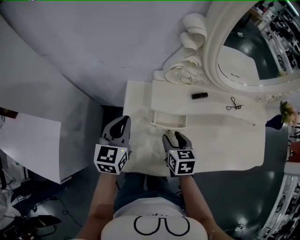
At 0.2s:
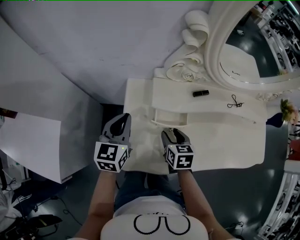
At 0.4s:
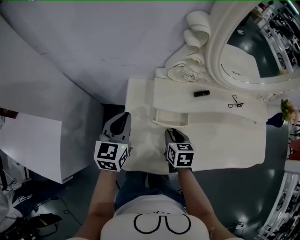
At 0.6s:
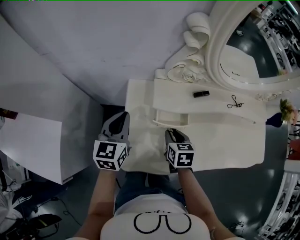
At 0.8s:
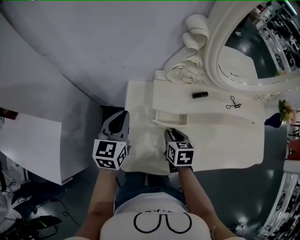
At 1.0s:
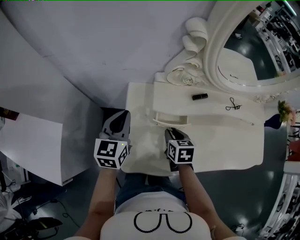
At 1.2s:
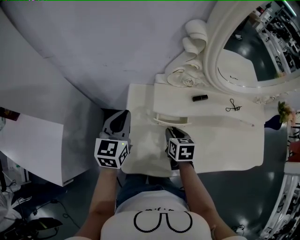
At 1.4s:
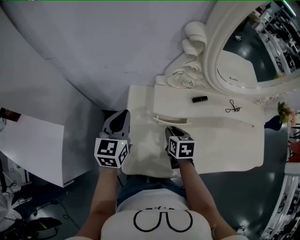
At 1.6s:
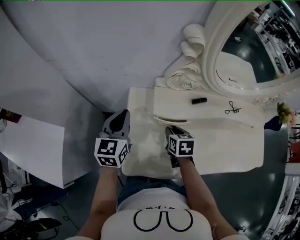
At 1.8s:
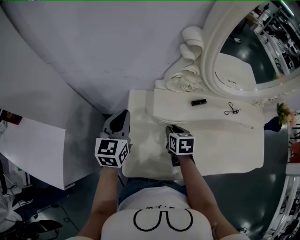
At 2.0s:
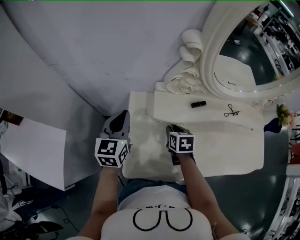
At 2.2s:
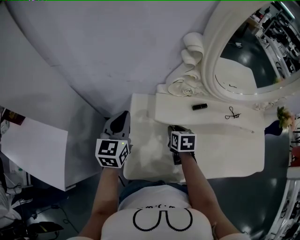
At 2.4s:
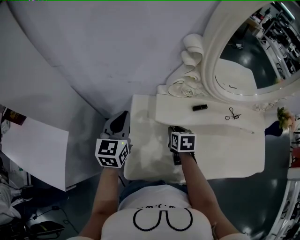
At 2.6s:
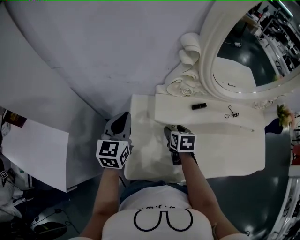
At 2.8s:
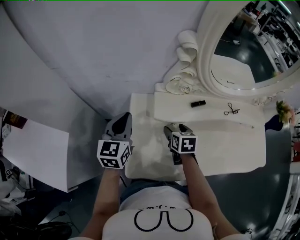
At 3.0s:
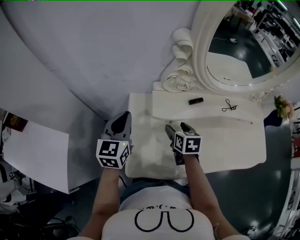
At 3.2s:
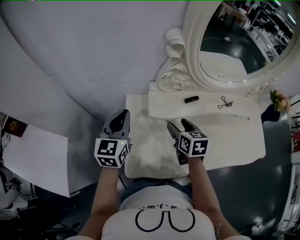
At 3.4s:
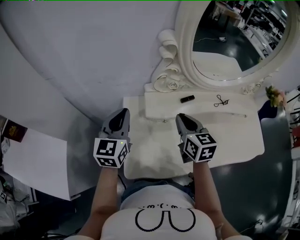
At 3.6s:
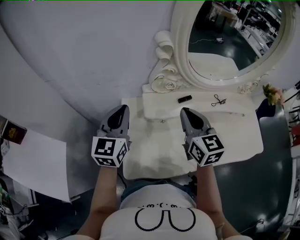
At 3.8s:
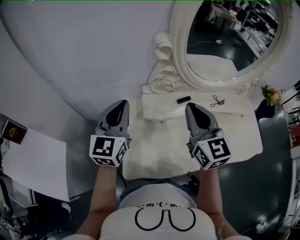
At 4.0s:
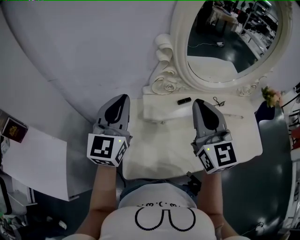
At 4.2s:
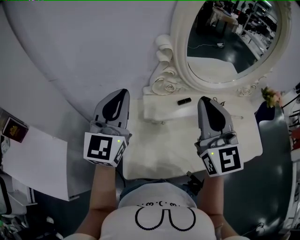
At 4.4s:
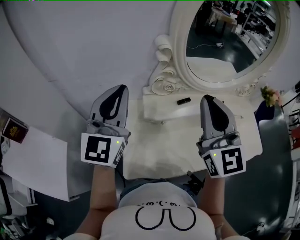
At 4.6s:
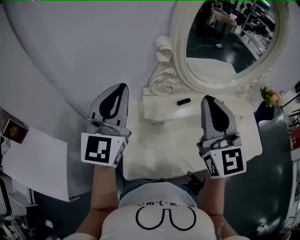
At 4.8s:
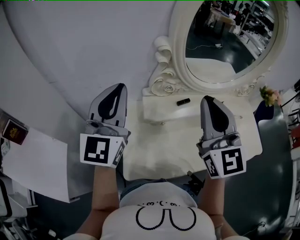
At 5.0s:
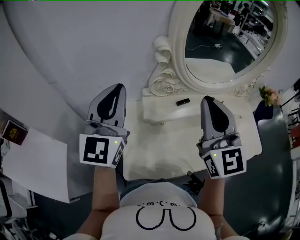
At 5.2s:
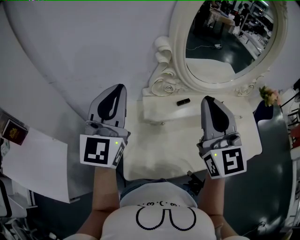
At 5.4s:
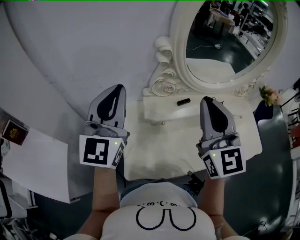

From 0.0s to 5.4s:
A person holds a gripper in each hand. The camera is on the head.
From 0.0s to 1.4s: The right gripper closes its fingers.
From 1.4s to 2.8s: The right gripper opens up.
From 2.8s to 4.0s: The right gripper moves upward, some 35 cm, tips its fingers upward by roughly 50 degrees, and closes. Meanwhile the left gripper heads upward, covering some 15 cm, and changes its angle by about 20 degrees.
From 4.0s to 5.4s: The left gripper shifts about 10 cm upward; the right gripper is displaced upward by about 5 cm.

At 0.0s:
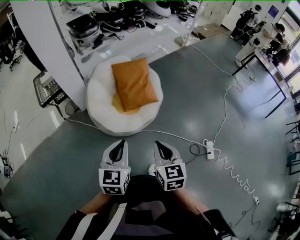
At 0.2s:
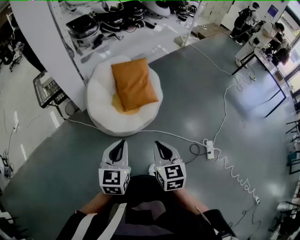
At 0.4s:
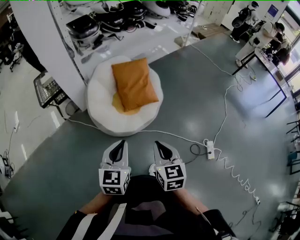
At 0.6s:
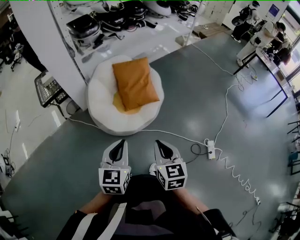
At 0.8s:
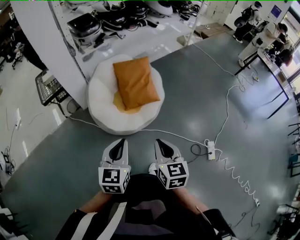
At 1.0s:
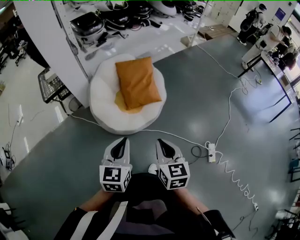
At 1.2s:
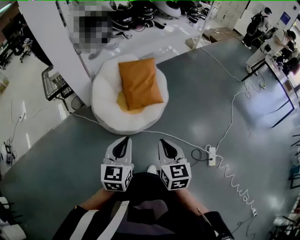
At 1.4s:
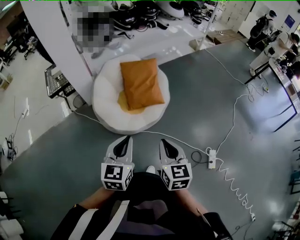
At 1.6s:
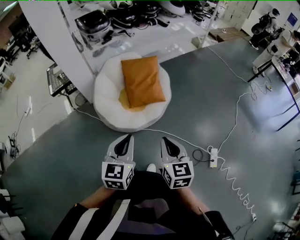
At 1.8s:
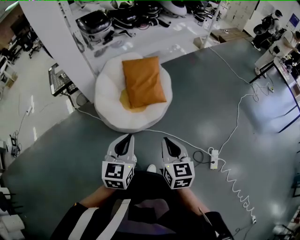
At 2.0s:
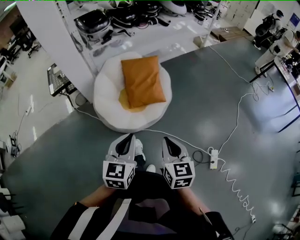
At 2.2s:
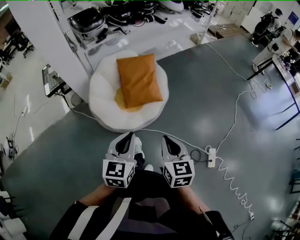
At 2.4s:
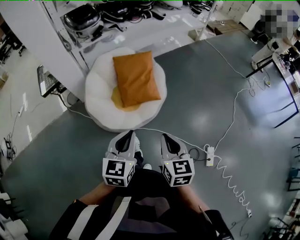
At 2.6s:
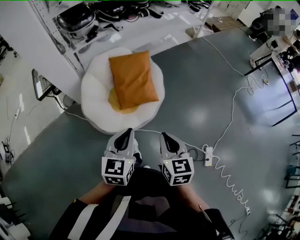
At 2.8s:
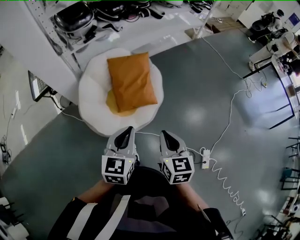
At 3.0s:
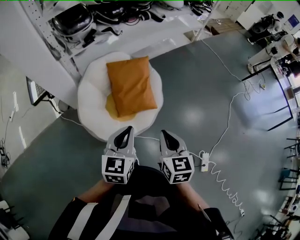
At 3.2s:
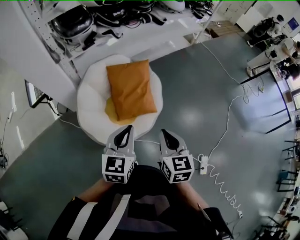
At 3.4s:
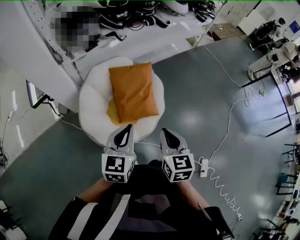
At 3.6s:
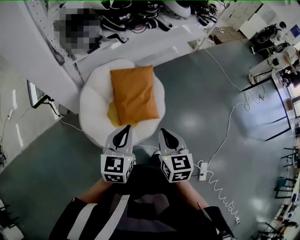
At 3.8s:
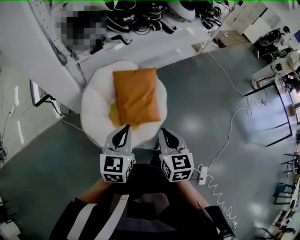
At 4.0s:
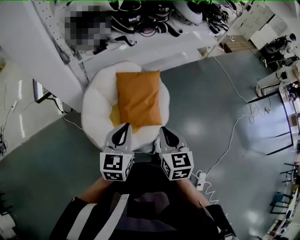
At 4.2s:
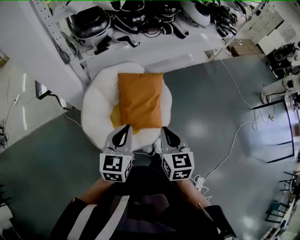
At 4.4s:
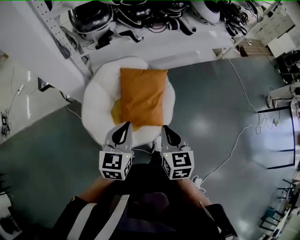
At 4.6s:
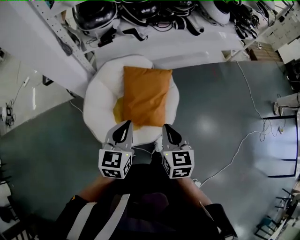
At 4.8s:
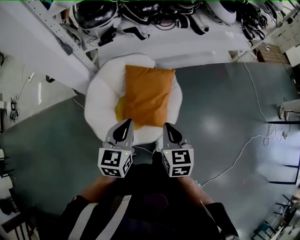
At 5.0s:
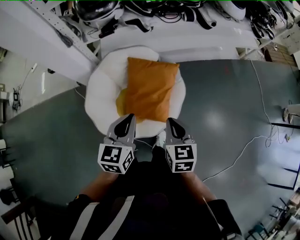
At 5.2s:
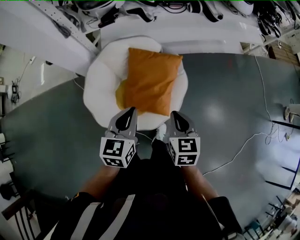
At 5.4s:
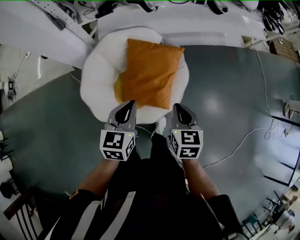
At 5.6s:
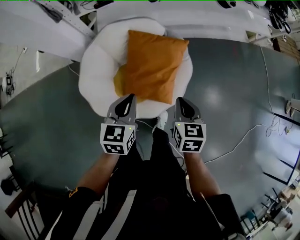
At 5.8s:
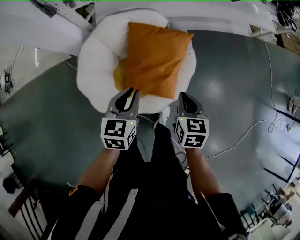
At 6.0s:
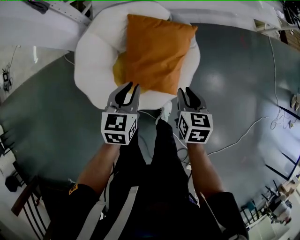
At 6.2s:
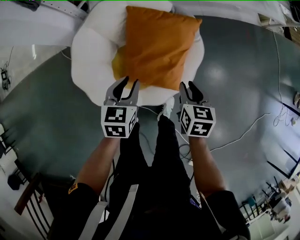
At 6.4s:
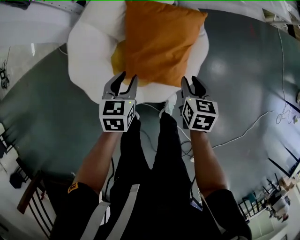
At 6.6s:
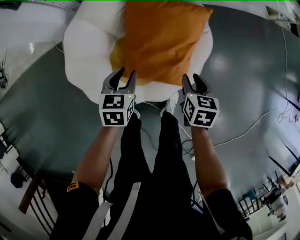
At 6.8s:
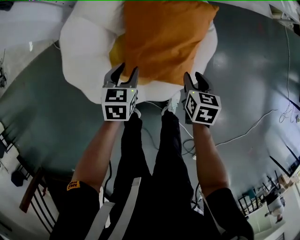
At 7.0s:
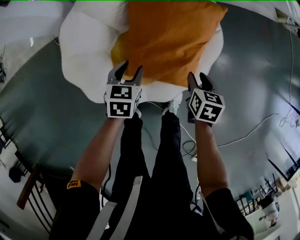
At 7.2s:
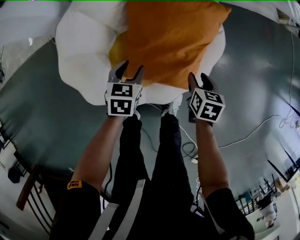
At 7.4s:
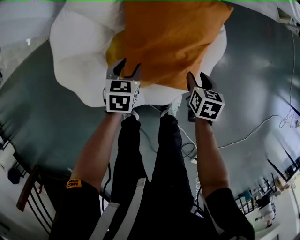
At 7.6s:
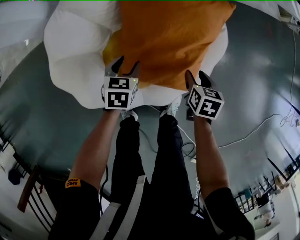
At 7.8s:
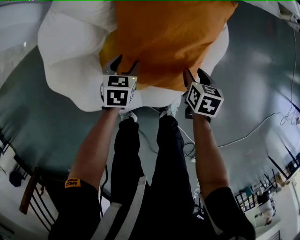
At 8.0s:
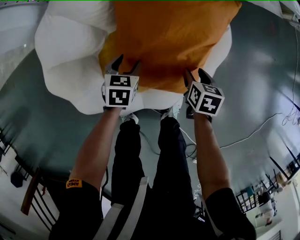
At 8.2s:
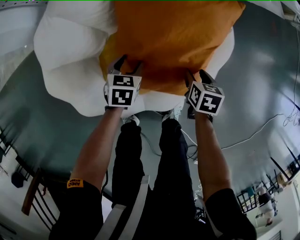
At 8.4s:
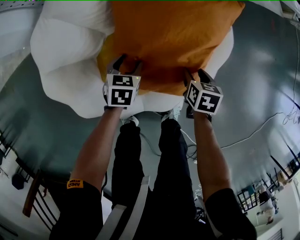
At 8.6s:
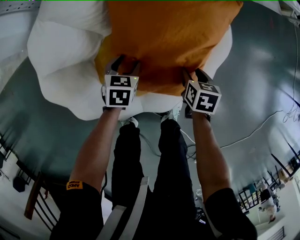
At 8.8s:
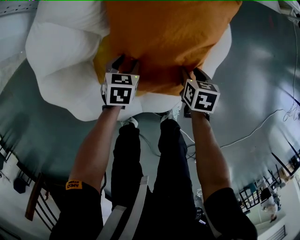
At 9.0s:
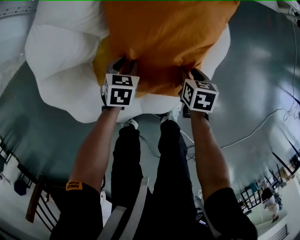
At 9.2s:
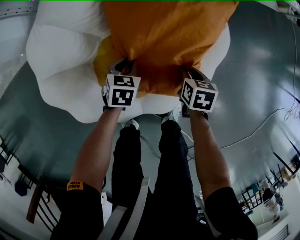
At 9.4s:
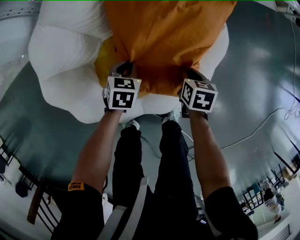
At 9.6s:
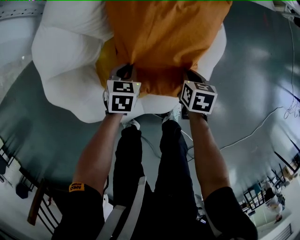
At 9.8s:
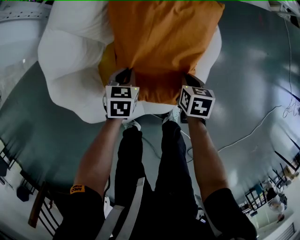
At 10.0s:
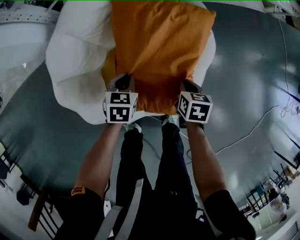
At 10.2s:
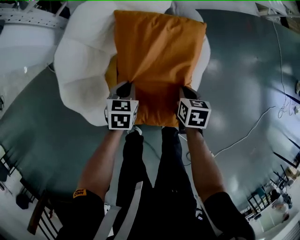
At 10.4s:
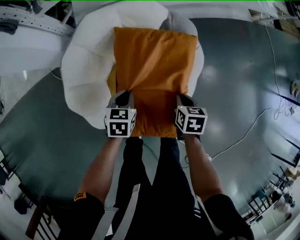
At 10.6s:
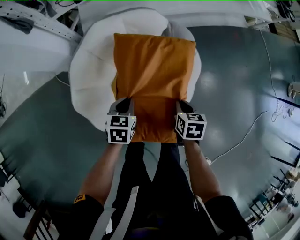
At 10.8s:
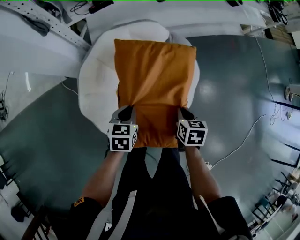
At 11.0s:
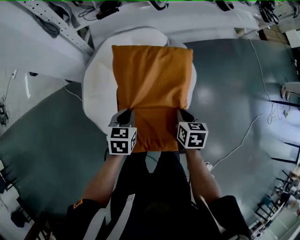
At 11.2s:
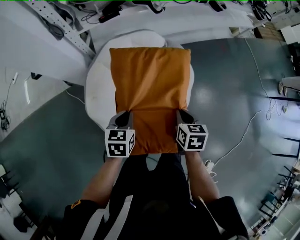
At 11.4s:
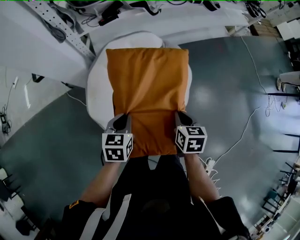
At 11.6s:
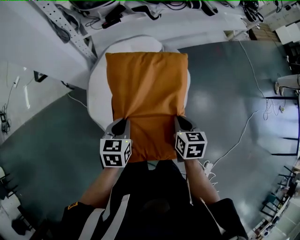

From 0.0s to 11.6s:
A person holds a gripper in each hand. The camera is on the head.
From 0.0s to 1.4s: The two grippers go approximately 10 cm to the right.
From 1.4s to 2.8s: Both grippers travel together forward, roughly 20 cm.
From 2.8s to 4.4s: The grippers both shift forward by about 25 cm.
From 4.4s to 5.8s: The grippers both shift downward and forward by some 20 cm.
From 5.8s to 7.2s: The grippers both shift downward by roughly 30 cm. The right gripper opens up; the left gripper opens up.
From 7.2s to 8.8s: The two grippers go roughly 15 cm downward.
From 8.8s to 10.2s: The grippers both shift upward by approximately 15 cm. The right gripper closes up, while the left gripper closes up.
From 10.2s to 11.6s: Both grippers travel together upward and backward, about 35 cm.

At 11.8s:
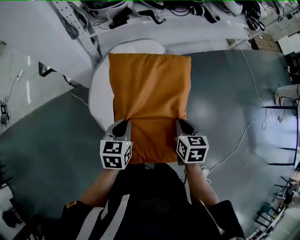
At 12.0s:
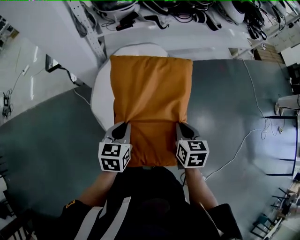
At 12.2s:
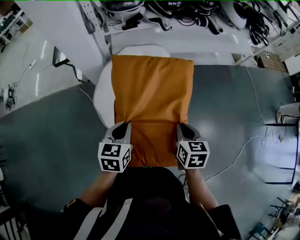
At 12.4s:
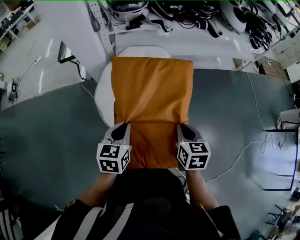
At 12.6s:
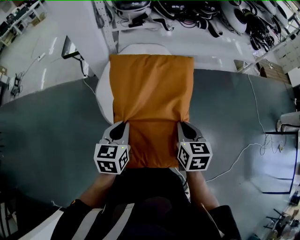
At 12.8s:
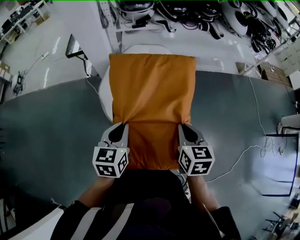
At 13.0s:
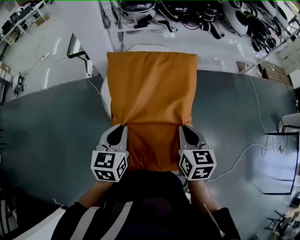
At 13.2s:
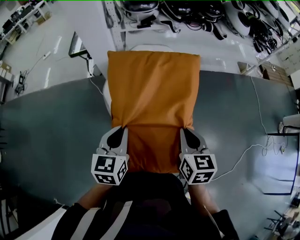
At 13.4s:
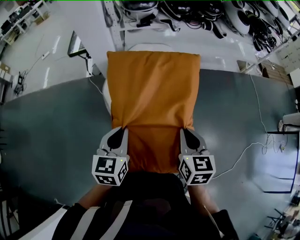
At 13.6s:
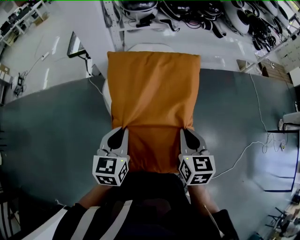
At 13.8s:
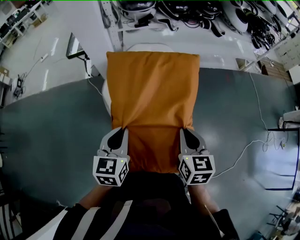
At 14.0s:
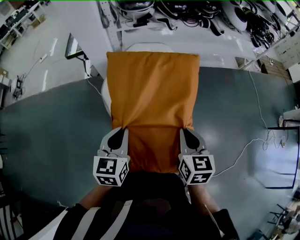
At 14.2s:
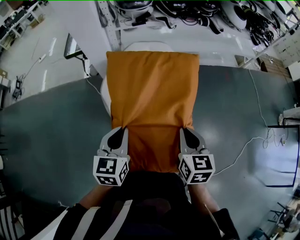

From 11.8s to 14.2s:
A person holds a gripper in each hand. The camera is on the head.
From 11.8s to 13.0s: The two grippers go about 25 cm backward and upward.
From 13.0s to 14.2s: The grippers make only small movements.

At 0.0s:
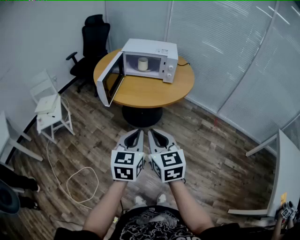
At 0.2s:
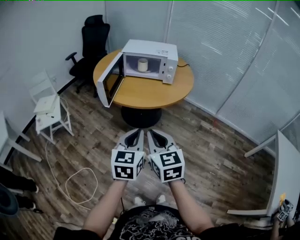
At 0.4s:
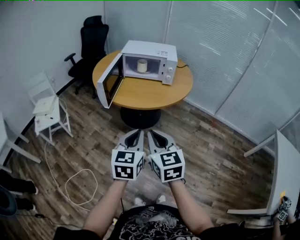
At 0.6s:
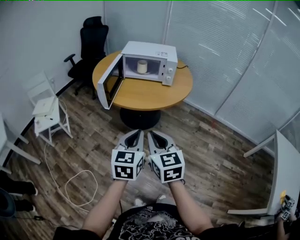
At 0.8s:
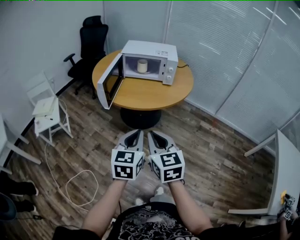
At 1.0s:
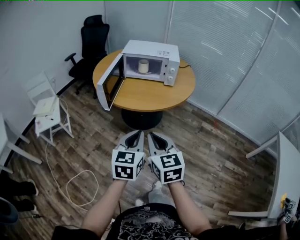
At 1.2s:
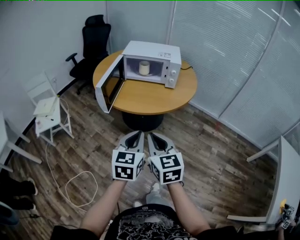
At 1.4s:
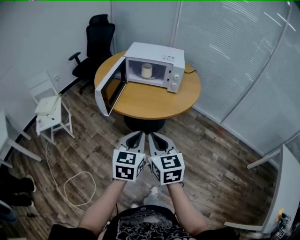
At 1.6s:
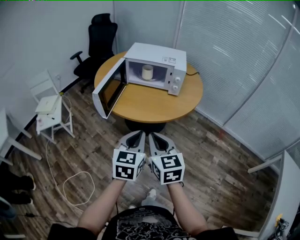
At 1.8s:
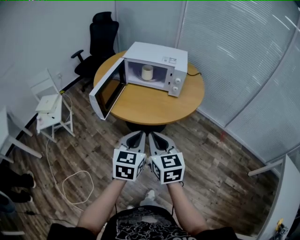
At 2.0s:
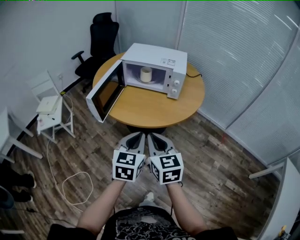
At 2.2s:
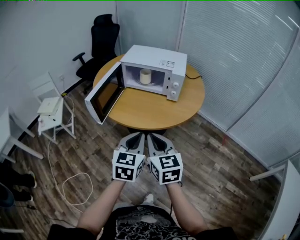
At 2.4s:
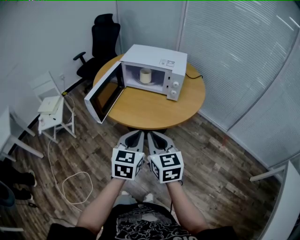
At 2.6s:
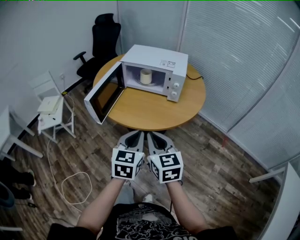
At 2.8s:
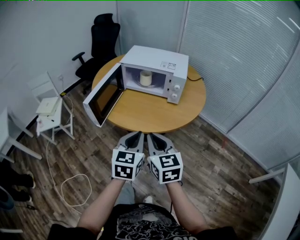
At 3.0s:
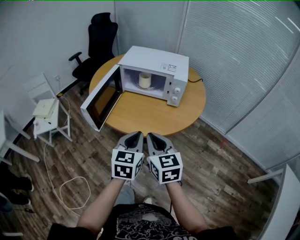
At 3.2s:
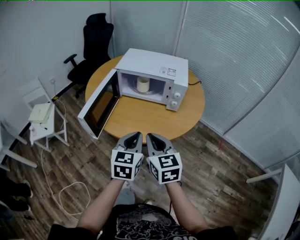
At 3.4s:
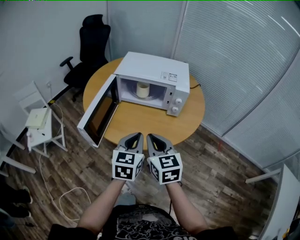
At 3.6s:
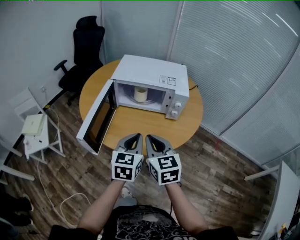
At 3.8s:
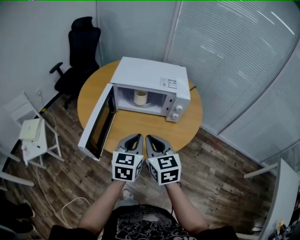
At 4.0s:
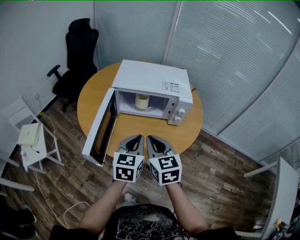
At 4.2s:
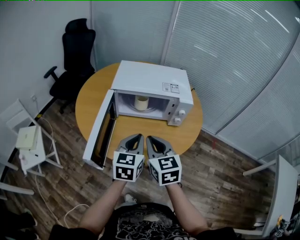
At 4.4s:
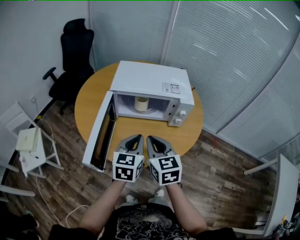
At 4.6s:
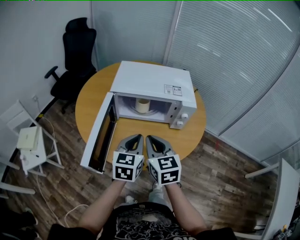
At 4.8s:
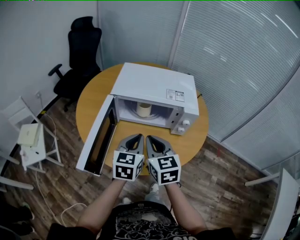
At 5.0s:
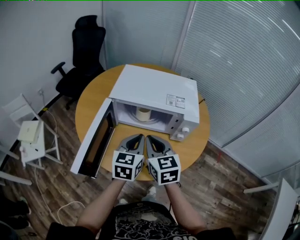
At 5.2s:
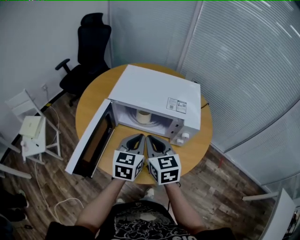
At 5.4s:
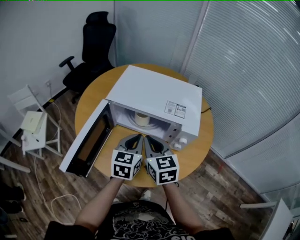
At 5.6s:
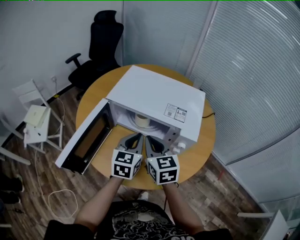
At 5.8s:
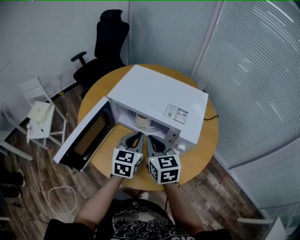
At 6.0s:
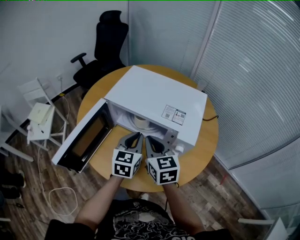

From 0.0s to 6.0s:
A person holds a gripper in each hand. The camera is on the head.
From 0.0s to 1.6s: The two grippers go approximately 15 cm forward.
From 1.6s to 3.0s: Both grippers travel together forward, roughly 10 cm.
From 3.0s to 4.4s: The right gripper moves forward and to the left, some 20 cm. The left gripper travels forward by about 20 cm.
From 4.4s to 6.0s: The grippers both shift forward and to the right by some 20 cm. The right gripper swivels roughly 20 degrees.
